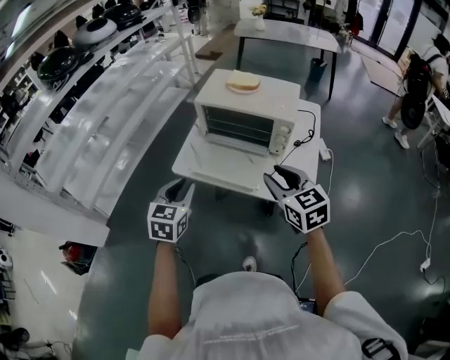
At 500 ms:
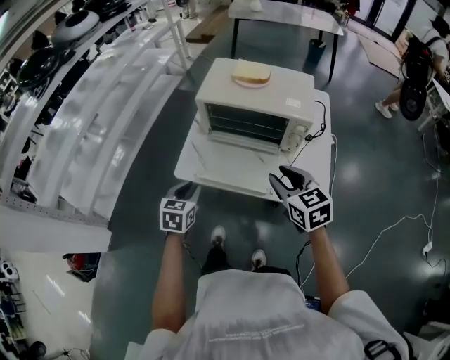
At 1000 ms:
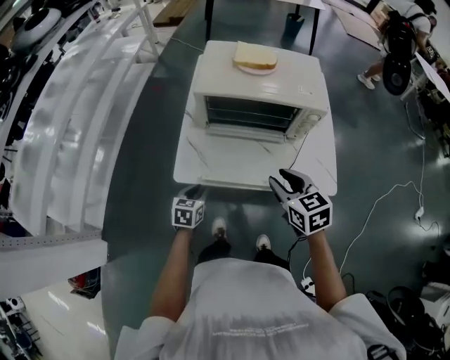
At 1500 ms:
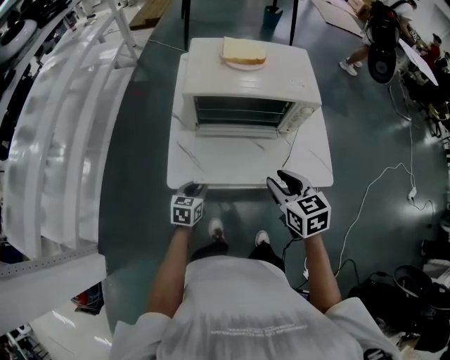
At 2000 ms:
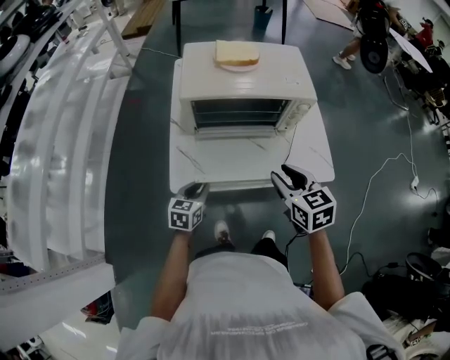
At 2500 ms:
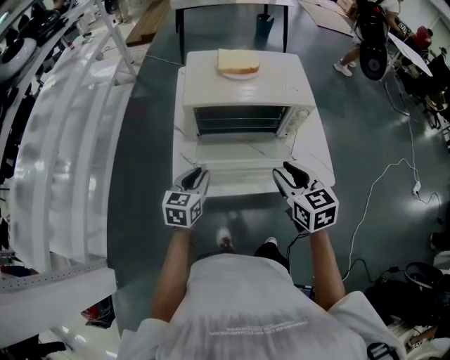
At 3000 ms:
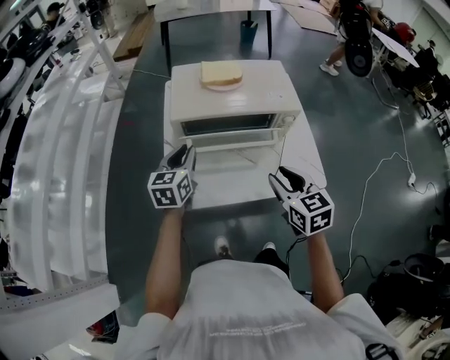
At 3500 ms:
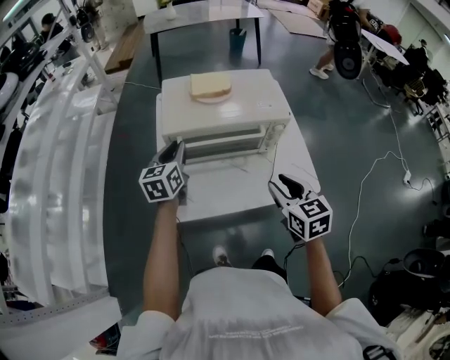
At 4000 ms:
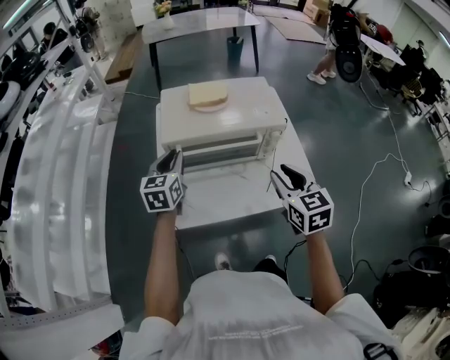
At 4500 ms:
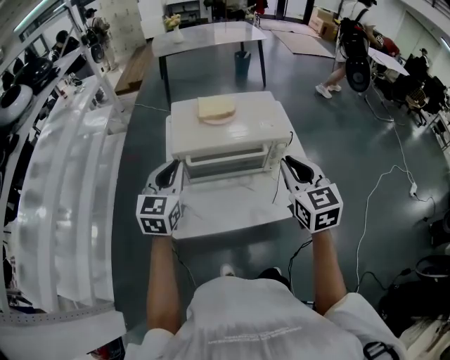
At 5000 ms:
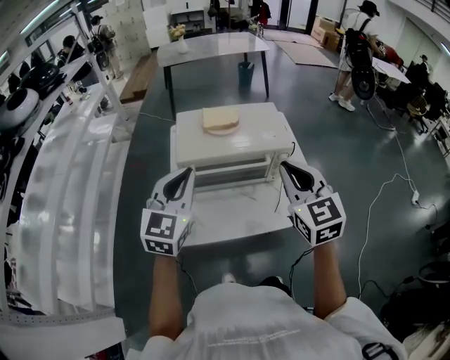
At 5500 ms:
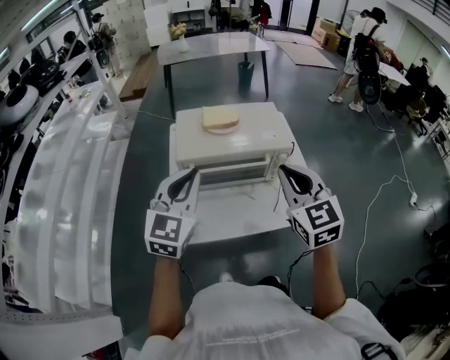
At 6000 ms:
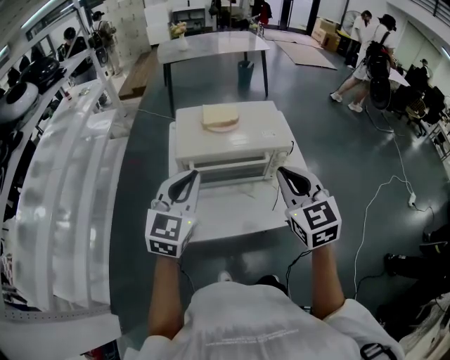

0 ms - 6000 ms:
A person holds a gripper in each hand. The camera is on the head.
0 ms - 2000 ms: The left gripper goes approximately 25 cm downward, and turns by about 30 degrees. Meanwhile the right gripper heads downward, covering roughly 10 cm, and changes its angle by approximately 30 degrees.
2000 ms - 4000 ms: The right gripper travels upward and to the right by some 10 cm, while the left gripper moves upward and forward, some 25 cm, and changes its angle by roughly 20 degrees.
4000 ms - 6000 ms: The right gripper is displaced upward by some 10 cm, and closes up. The left gripper heads upward and backward, covering roughly 15 cm, and changes its angle by about 30 degrees.

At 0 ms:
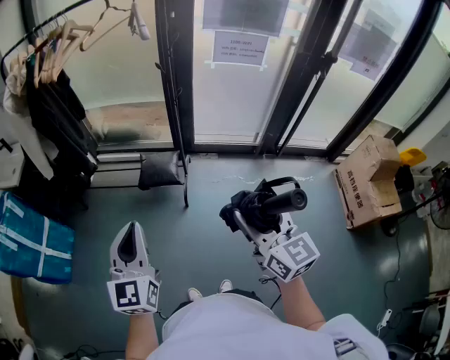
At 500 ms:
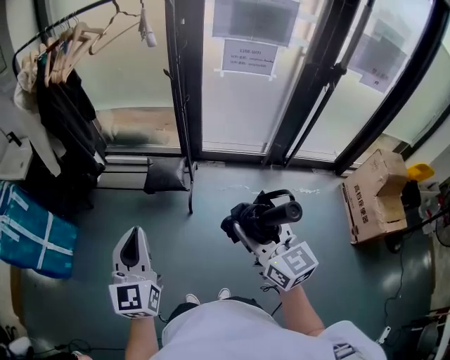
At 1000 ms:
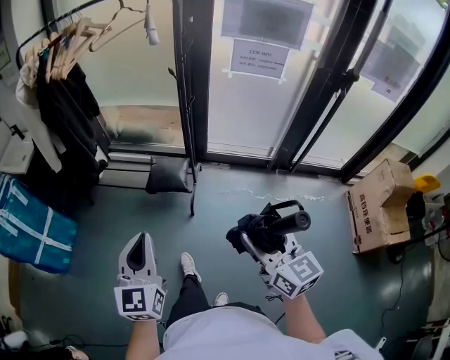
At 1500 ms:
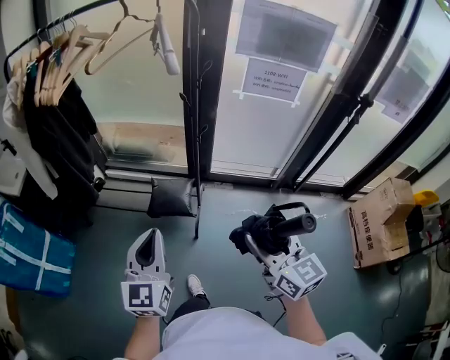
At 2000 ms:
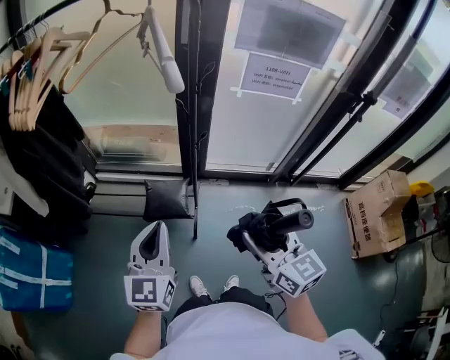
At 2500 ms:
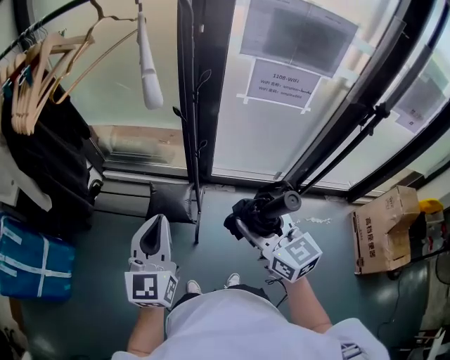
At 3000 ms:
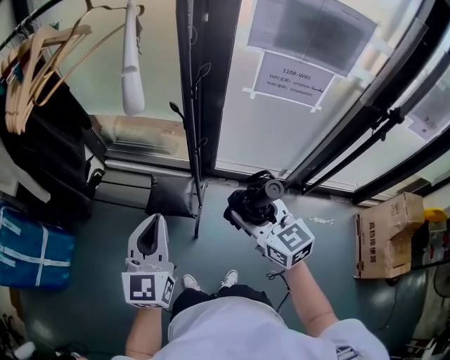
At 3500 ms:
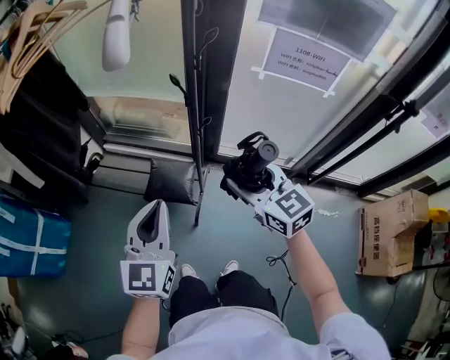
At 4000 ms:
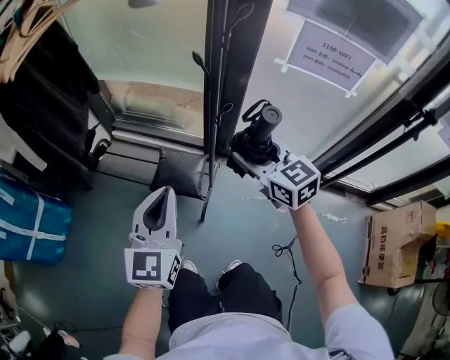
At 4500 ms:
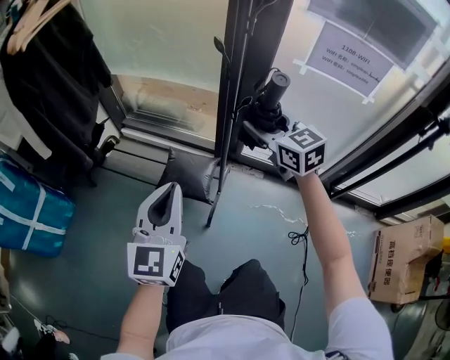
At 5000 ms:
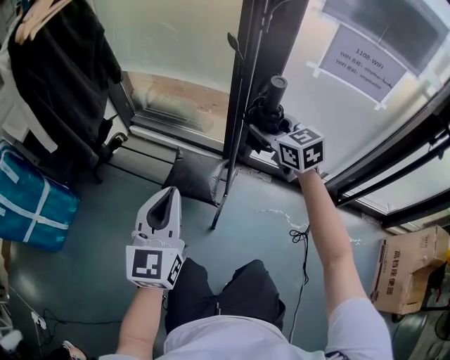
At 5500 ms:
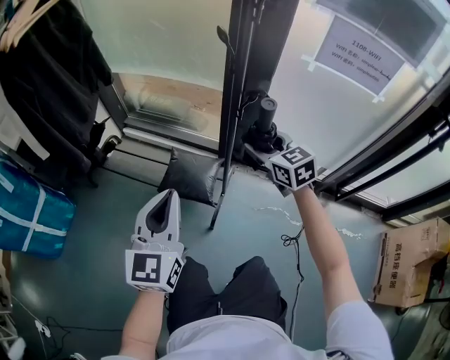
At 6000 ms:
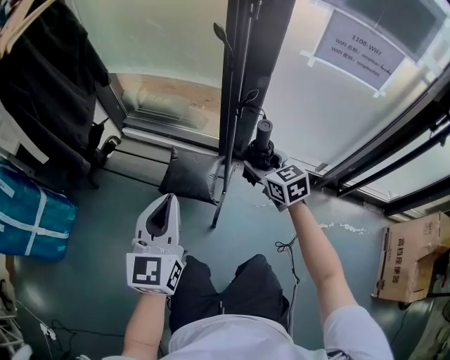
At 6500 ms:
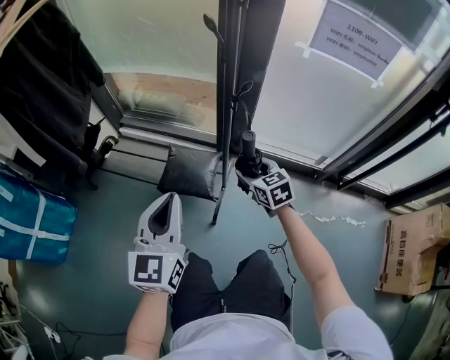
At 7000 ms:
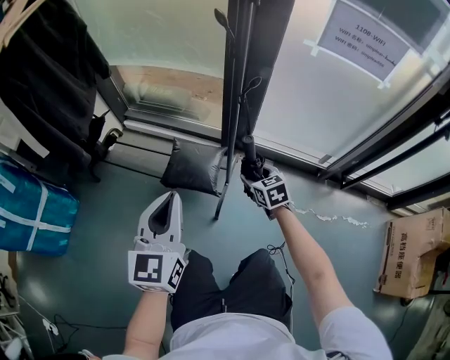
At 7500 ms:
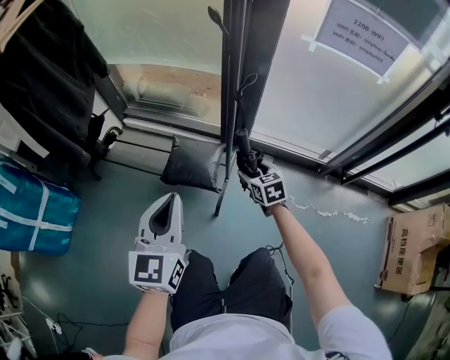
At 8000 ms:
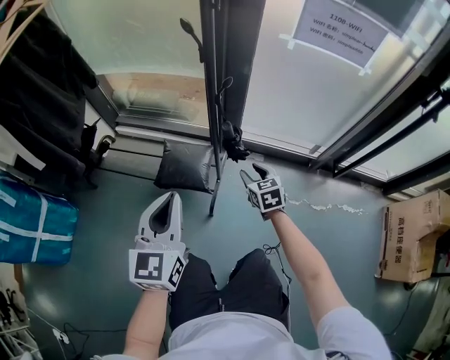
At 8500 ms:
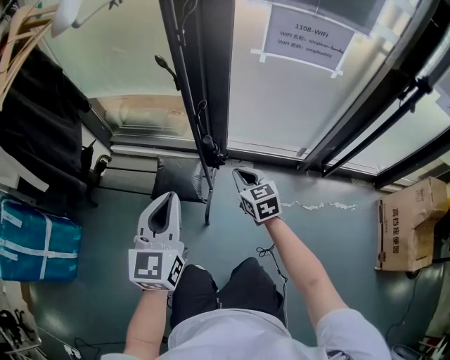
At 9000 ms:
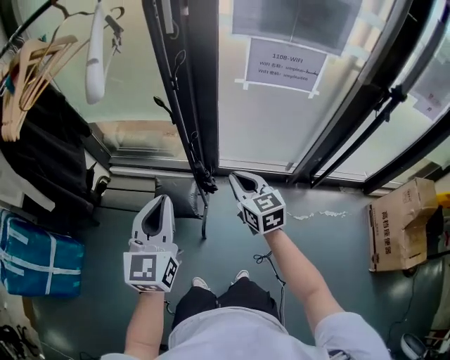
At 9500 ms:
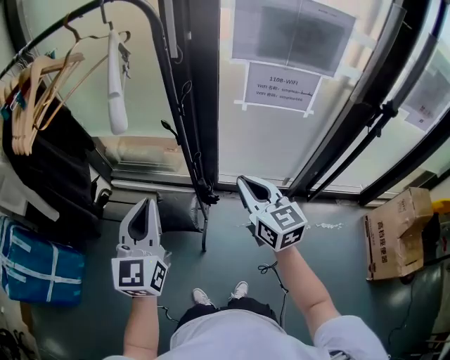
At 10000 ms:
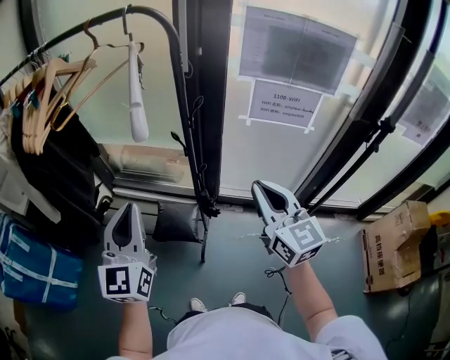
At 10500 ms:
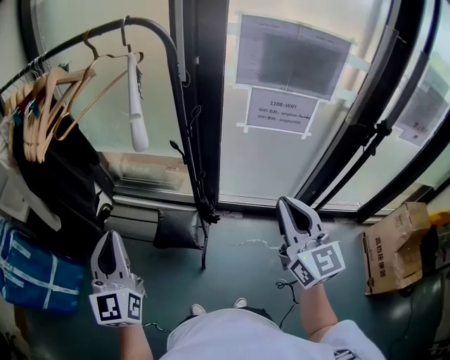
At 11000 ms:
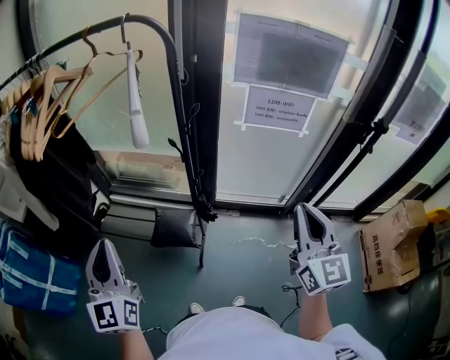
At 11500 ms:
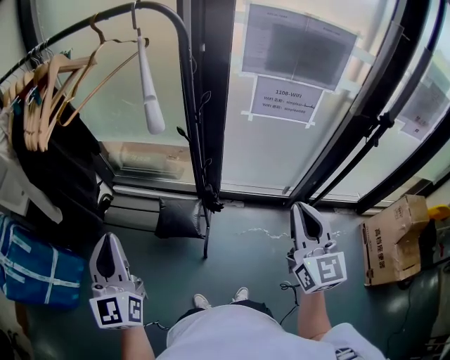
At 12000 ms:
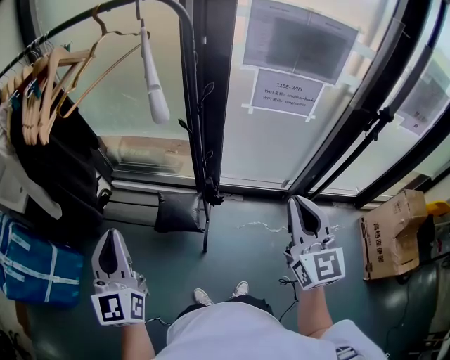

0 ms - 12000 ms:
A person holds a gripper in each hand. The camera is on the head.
0 ms - 2000 ms: Both grippers travel together forward, about 25 cm.
2000 ms - 4000 ms: The left gripper shifts roughly 10 cm downward, forward and to the right. Meanwhile the right gripper goes some 25 cm forward and downward, and swivels approximately 30 degrees.
4000 ms - 6000 ms: The right gripper is displaced downward by approximately 20 cm. The left gripper heads downward, covering roughly 10 cm.
6000 ms - 8000 ms: The right gripper heads downward and backward, covering roughly 10 cm.
8000 ms - 10000 ms: The left gripper moves upward, some 30 cm. Meanwhile the right gripper is displaced upward by some 50 cm, tips its fingers upward by about 40 degrees, and closes up.
10000 ms - 12000 ms: The right gripper moves backward, roughly 10 cm. Meanwhile the left gripper is displaced to the left and backward by about 10 cm.

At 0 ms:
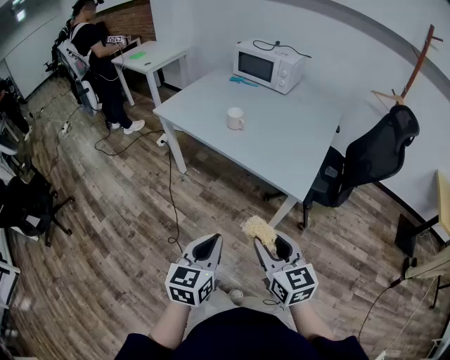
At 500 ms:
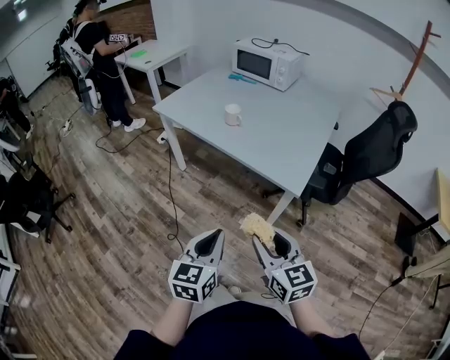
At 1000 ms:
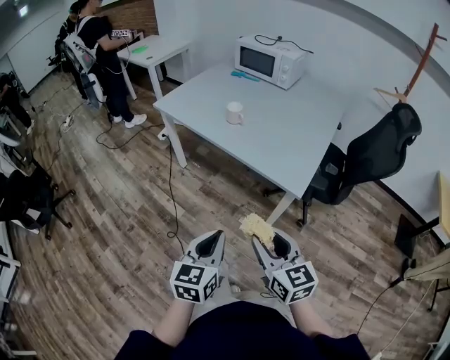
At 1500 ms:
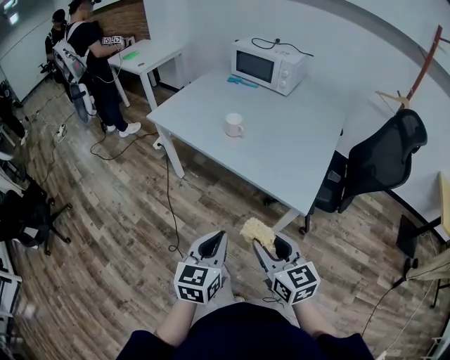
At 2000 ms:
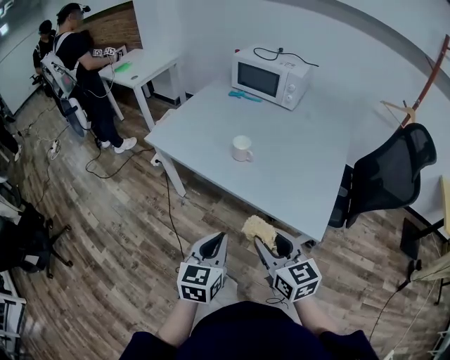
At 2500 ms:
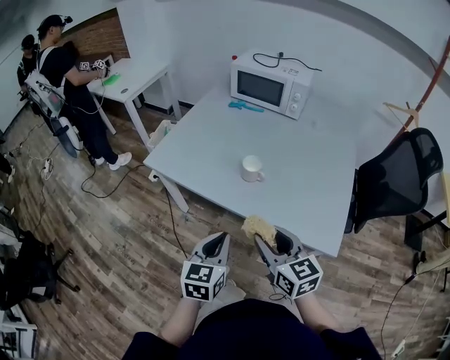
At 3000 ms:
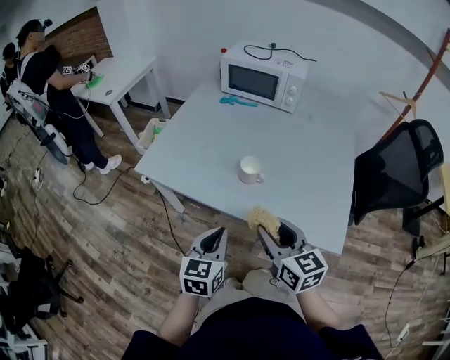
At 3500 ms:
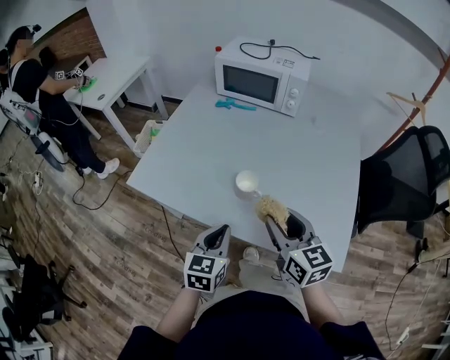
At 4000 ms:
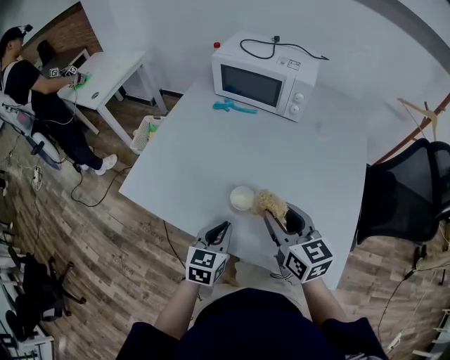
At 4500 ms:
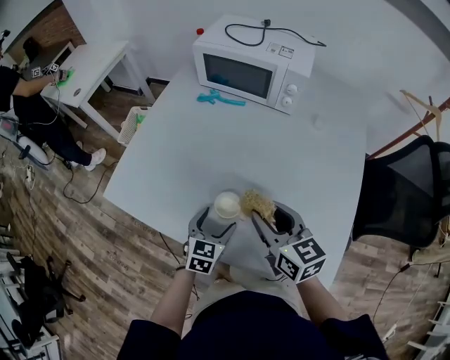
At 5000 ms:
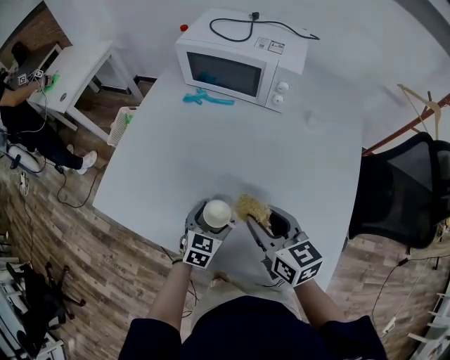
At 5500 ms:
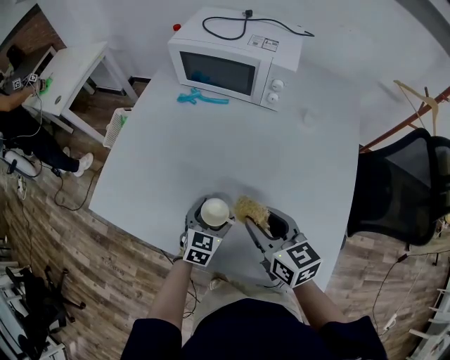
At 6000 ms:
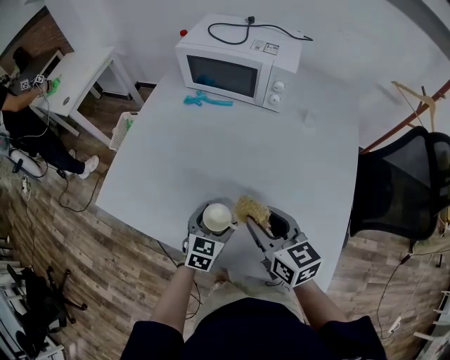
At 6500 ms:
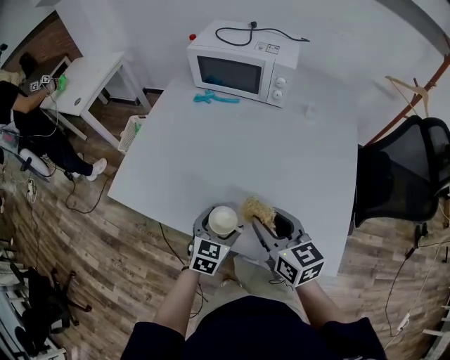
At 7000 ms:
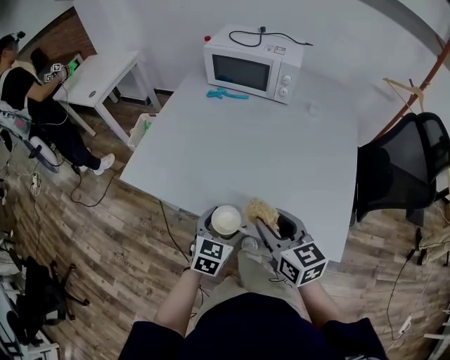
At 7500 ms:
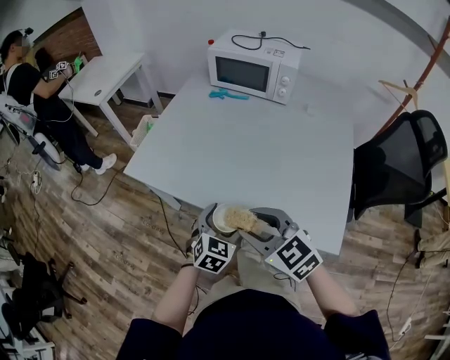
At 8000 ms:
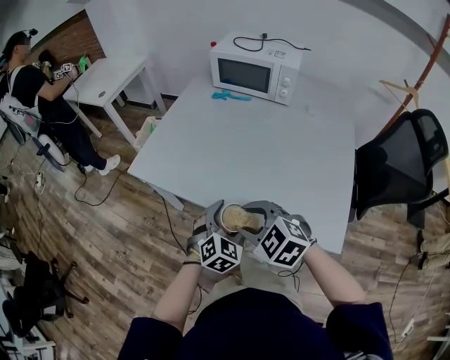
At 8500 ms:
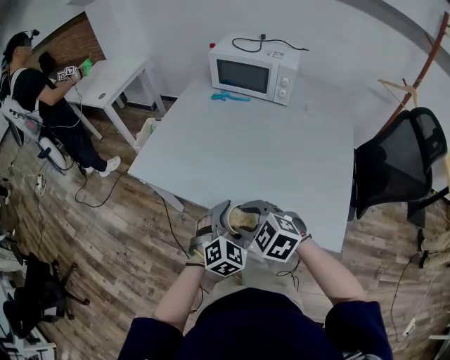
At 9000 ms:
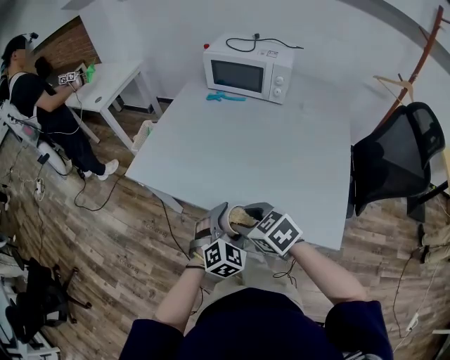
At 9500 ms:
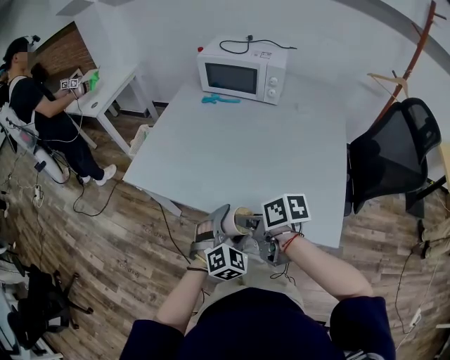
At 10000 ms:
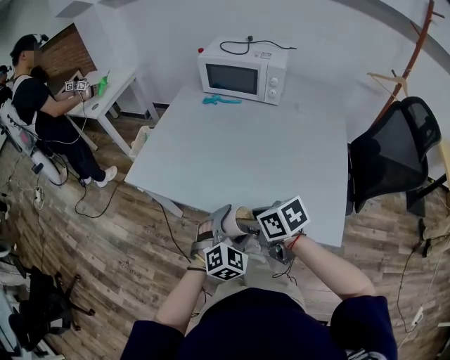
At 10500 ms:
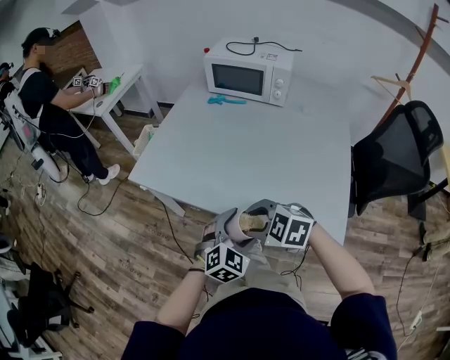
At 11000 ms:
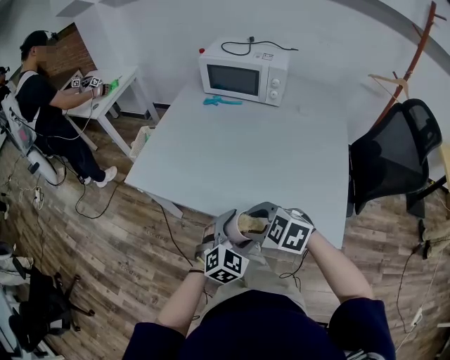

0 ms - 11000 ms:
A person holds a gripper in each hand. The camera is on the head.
0 ms - 2000 ms: The two grippers go roughly 20 cm forward.
2000 ms - 3500 ms: Both grippers travel together forward, about 25 cm.
3500 ms - 5500 ms: The right gripper moves forward, roughly 15 cm. Meanwhile the left gripper travels forward, downward and to the right by roughly 25 cm, and opens up.
5500 ms - 7500 ms: The left gripper shifts some 20 cm backward and upward, while the right gripper moves backward and to the left, about 25 cm, and swivels about 40 degrees.
7500 ms - 9000 ms: The right gripper travels downward by some 5 cm, and swivels some 20 degrees. Meanwhile the left gripper changes its angle by roughly 20 degrees.
9000 ms - 11000 ms: The right gripper rotates some 20 degrees.
